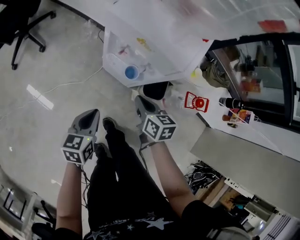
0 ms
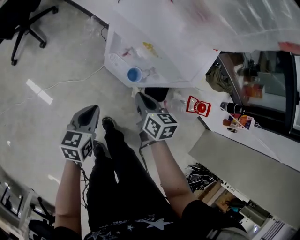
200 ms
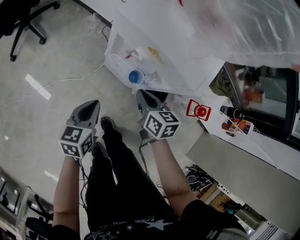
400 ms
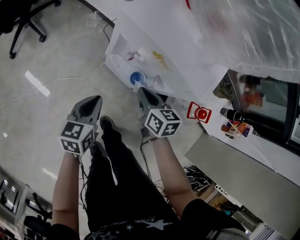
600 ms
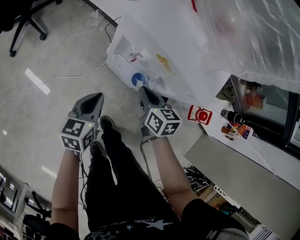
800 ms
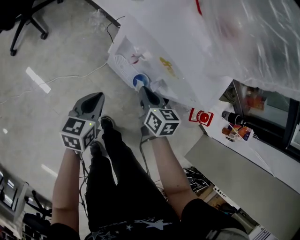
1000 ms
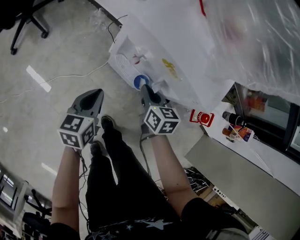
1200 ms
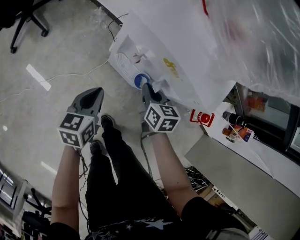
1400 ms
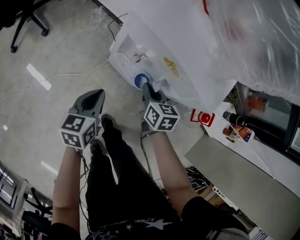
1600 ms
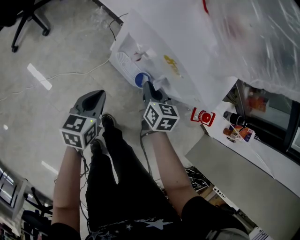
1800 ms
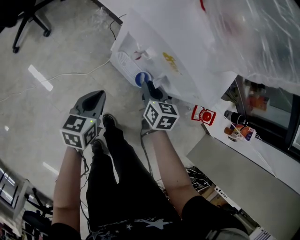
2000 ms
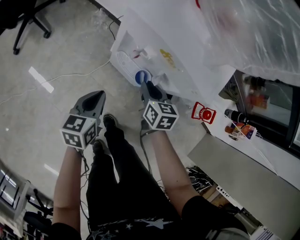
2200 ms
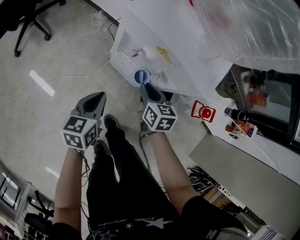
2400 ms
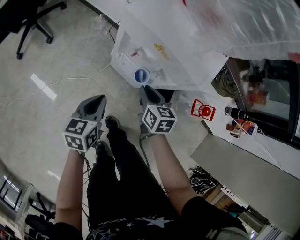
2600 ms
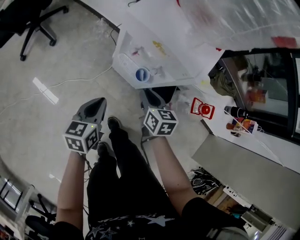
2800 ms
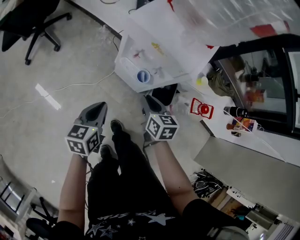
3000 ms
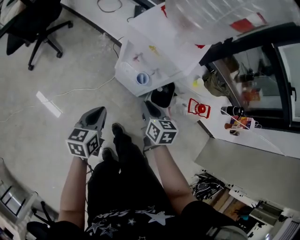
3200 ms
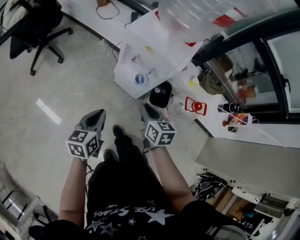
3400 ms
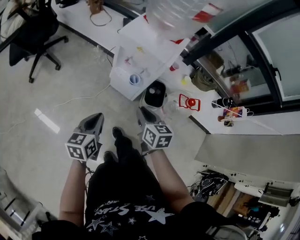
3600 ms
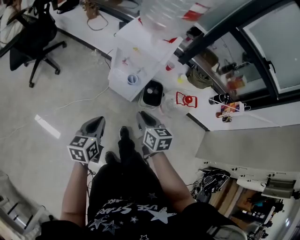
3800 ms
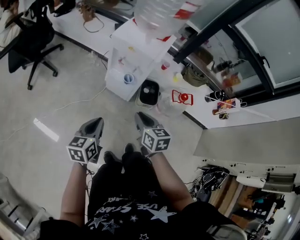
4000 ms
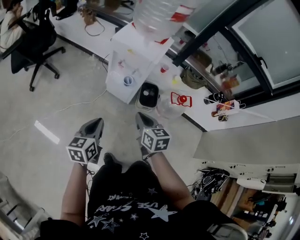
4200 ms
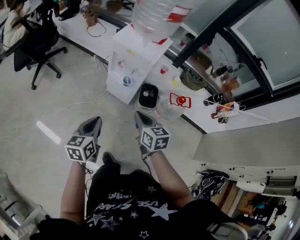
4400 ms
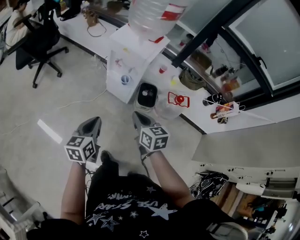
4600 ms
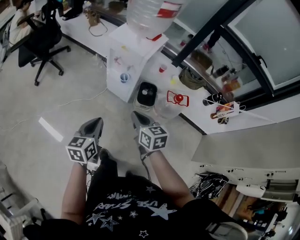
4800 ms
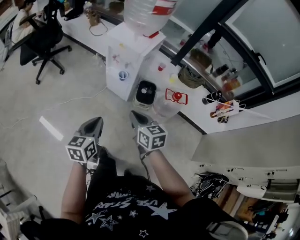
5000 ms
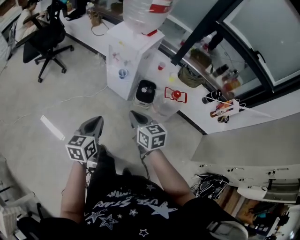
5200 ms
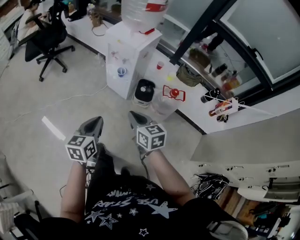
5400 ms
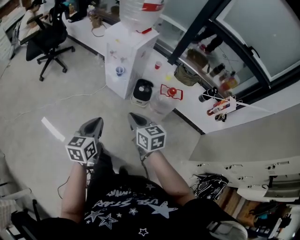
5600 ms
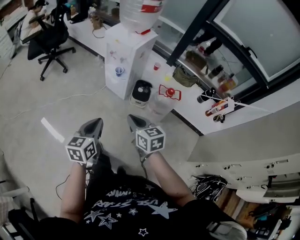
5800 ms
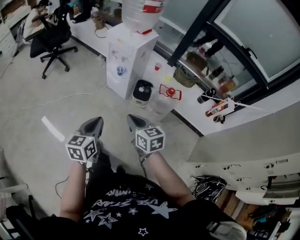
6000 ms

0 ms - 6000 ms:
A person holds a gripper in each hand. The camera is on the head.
0 ms - 1600 ms: Both grippers move forward and downward, about 15 cm.
1600 ms - 3000 ms: Both grippers move backward and upward, some 15 cm.
3000 ms - 4400 ms: The two grippers go roughly 25 cm backward and upward.
4400 ms - 6000 ms: The two grippers go roughly 25 cm backward and to the right.

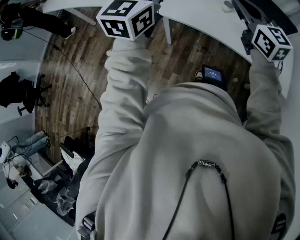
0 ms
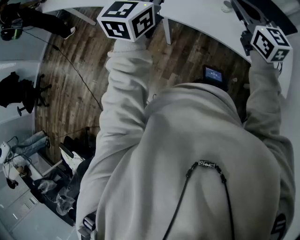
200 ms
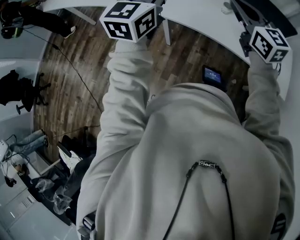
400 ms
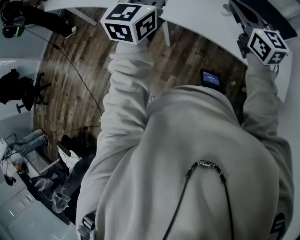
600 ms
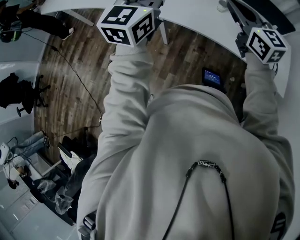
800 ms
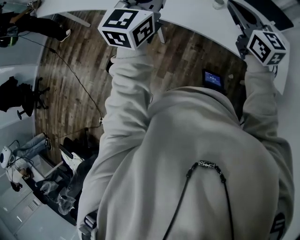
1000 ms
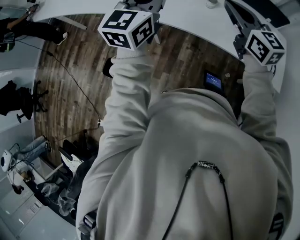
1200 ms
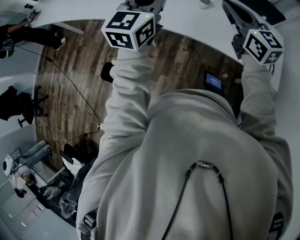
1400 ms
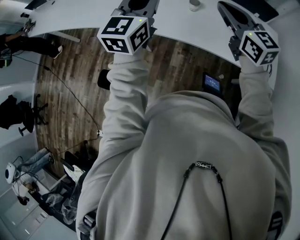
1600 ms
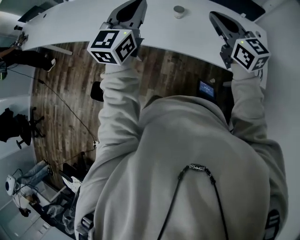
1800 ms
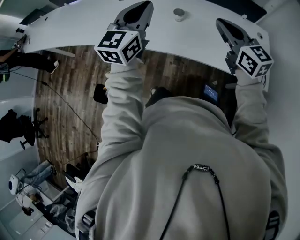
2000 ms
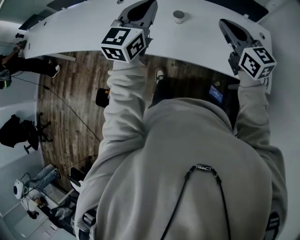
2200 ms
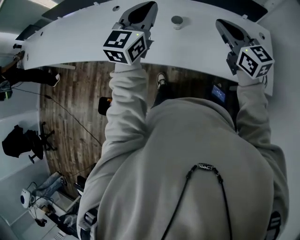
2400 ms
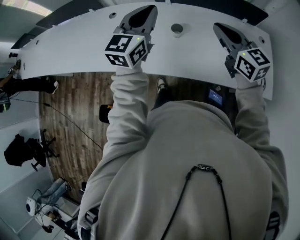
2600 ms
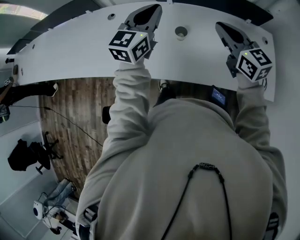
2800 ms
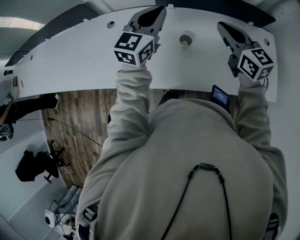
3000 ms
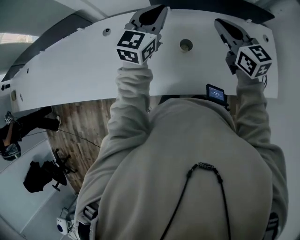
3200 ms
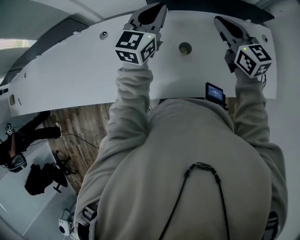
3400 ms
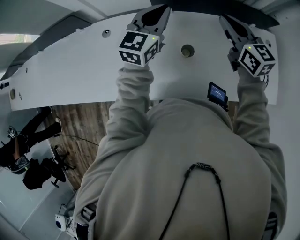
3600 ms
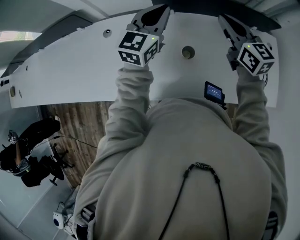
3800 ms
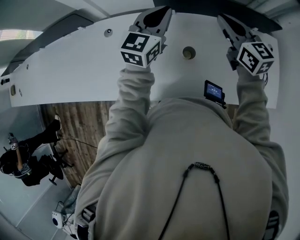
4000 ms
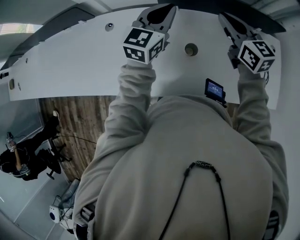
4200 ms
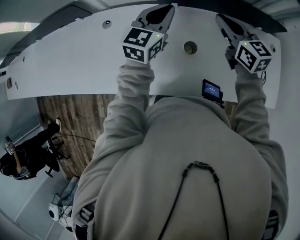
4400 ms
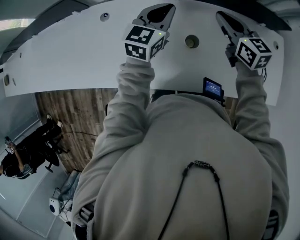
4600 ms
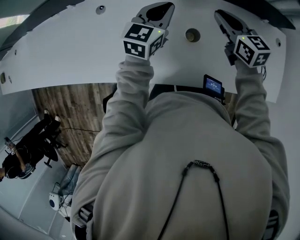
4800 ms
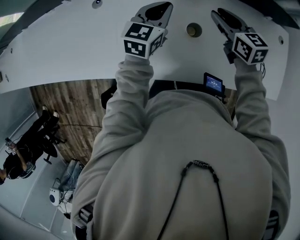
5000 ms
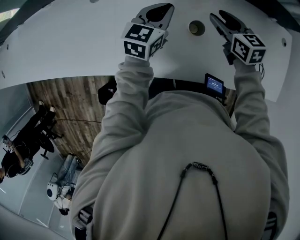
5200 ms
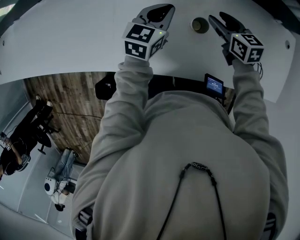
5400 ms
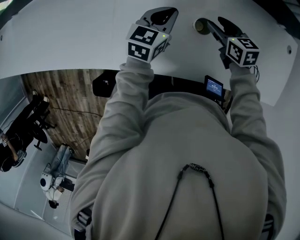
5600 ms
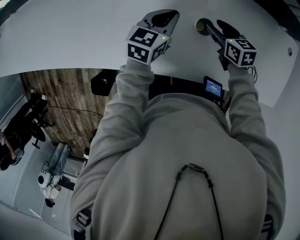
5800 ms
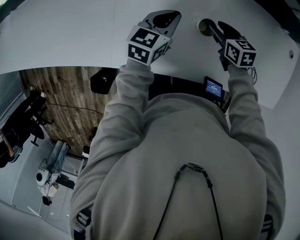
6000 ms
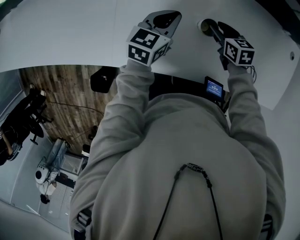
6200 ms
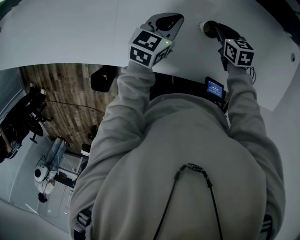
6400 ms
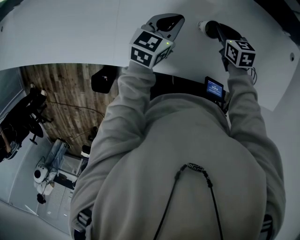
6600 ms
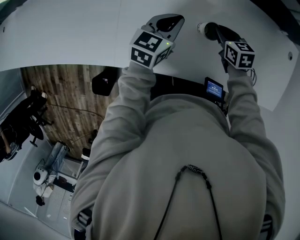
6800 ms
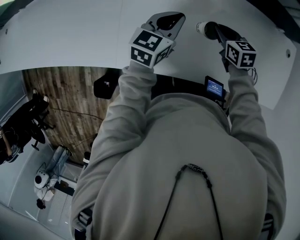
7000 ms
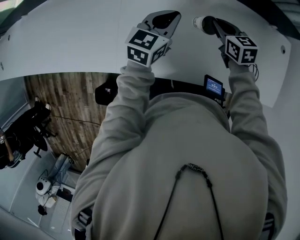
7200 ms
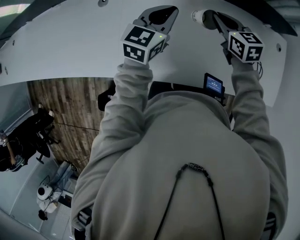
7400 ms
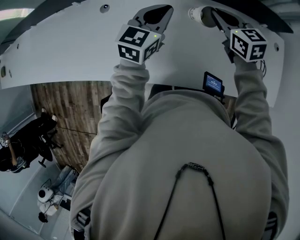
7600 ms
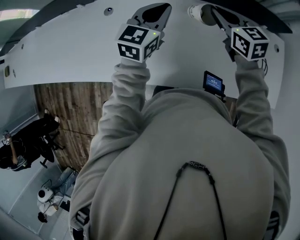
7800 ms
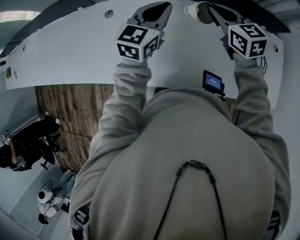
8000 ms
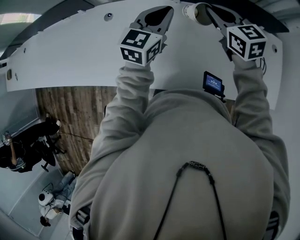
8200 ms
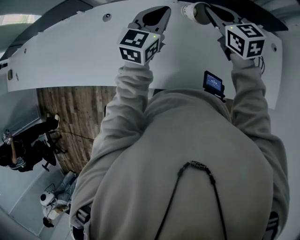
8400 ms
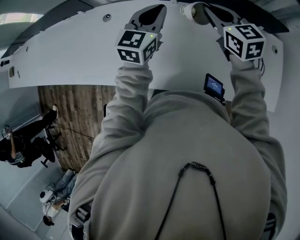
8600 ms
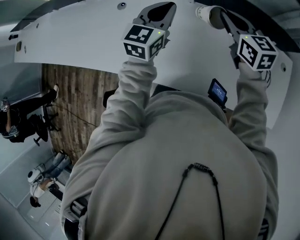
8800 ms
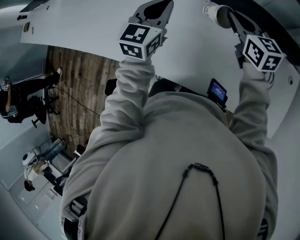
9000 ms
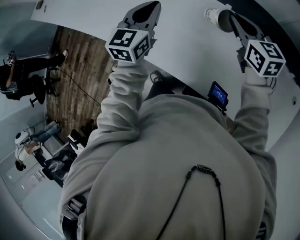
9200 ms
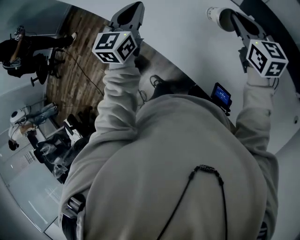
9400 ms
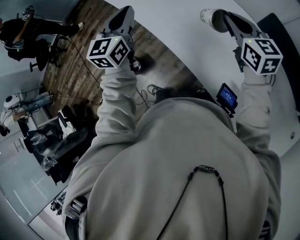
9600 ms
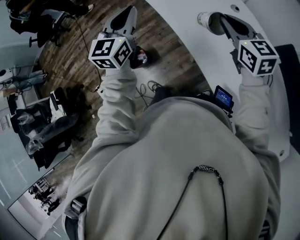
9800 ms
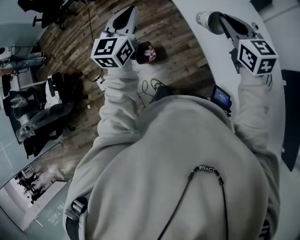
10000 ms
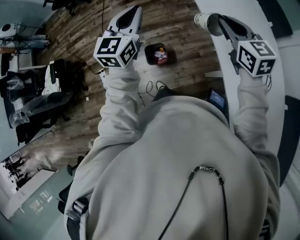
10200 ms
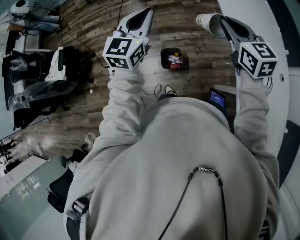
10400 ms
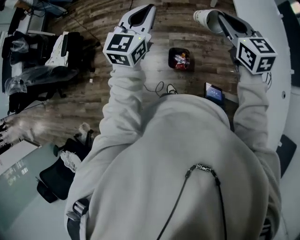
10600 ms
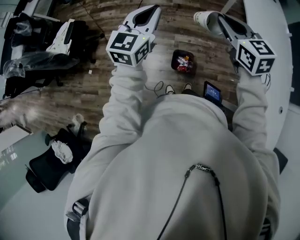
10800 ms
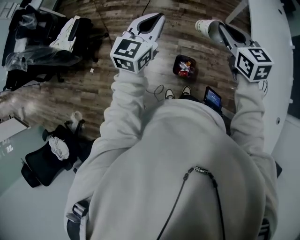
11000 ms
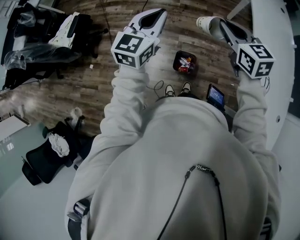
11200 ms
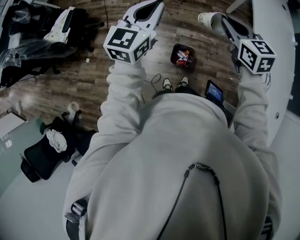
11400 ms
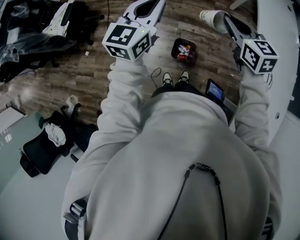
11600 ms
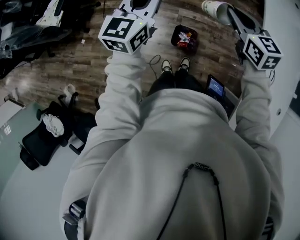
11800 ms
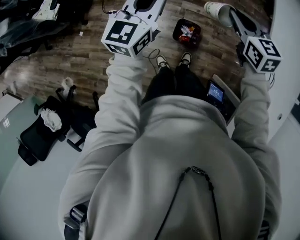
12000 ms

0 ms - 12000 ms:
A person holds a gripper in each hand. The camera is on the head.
0 ms - 1600 ms: Both grippers travel together to the right, about 15 cm.
1600 ms - 3000 ms: The right gripper shifts approximately 15 cm to the right, downward and forward. The left gripper travels forward, to the right and downward by some 20 cm, and changes its angle by about 20 degrees.
3000 ms - 4400 ms: The right gripper travels forward by approximately 5 cm, while the left gripper ends up about 5 cm from where it was.
4400 ms - 6000 ms: The two grippers go some 20 cm downward. The left gripper swivels roughly 20 degrees. Meanwhile the right gripper points its fingers roughly 30 degrees further downward, and opens up.
6000 ms - 7600 ms: Both grippers move upward, approximately 15 cm. The right gripper rotates some 20 degrees, and closes its fingers.
7600 ms - 9000 ms: The left gripper travels to the left by approximately 5 cm, and rotates about 20 degrees.
9000 ms - 10400 ms: Both grippers are carried some 80 cm. The right gripper changes its angle by some 70 degrees. Meanwhile the left gripper changes its angle by some 70 degrees.
10400 ms - 12000 ms: The left gripper moves to the left, downward and forward, some 20 cm. The right gripper moves downward, forward and to the left, approximately 25 cm, and turns by approximately 20 degrees.

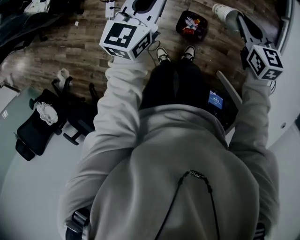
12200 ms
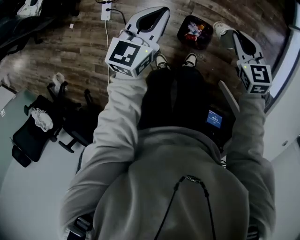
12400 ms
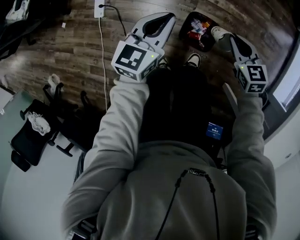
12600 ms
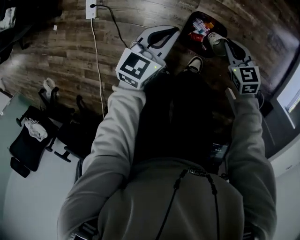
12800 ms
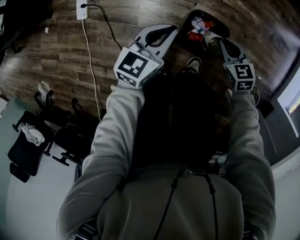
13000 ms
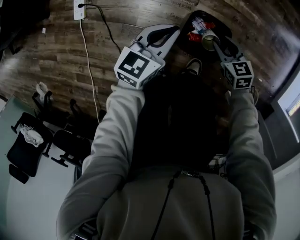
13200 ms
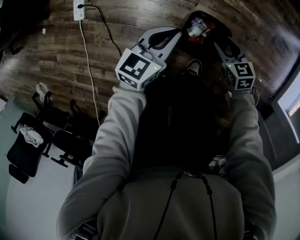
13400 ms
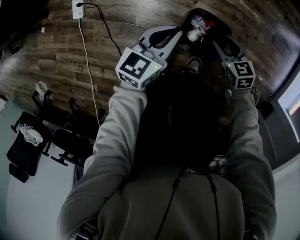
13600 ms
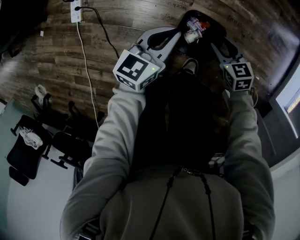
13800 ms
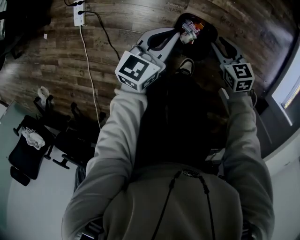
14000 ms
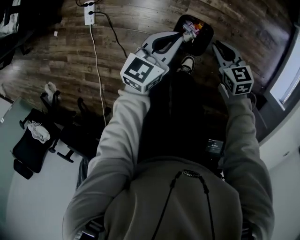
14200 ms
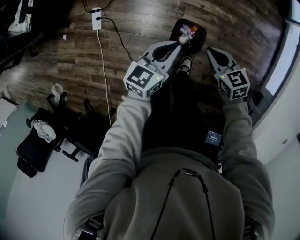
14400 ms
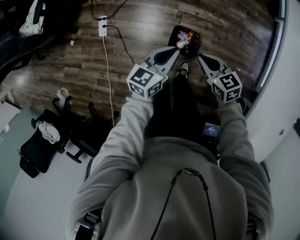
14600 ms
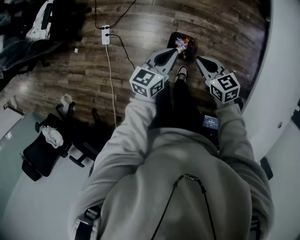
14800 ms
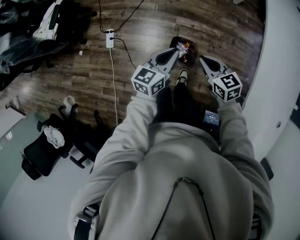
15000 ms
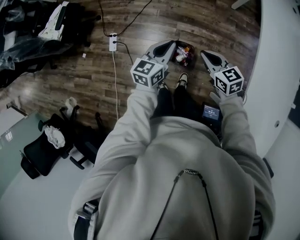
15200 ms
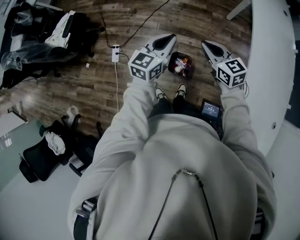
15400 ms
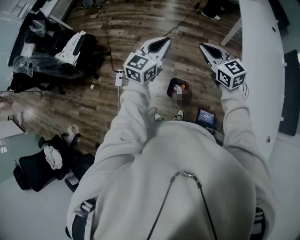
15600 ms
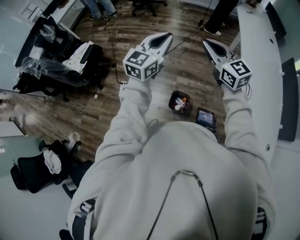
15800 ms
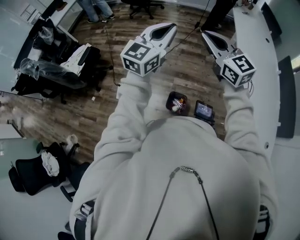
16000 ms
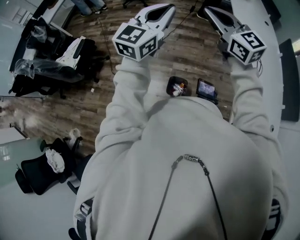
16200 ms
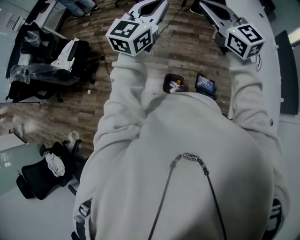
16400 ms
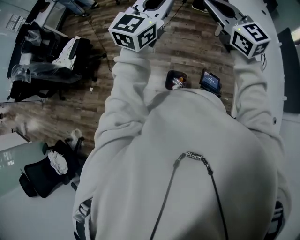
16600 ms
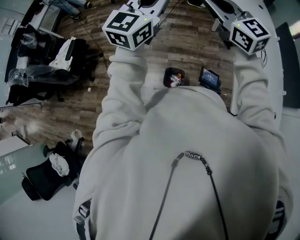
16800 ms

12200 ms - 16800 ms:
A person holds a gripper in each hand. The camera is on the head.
12200 ms - 13800 ms: The two grippers go approximately 50 cm downward. The right gripper turns by roughly 20 degrees, and opens up; the left gripper changes its angle by some 20 degrees.
13800 ms - 15200 ms: Both grippers travel together upward, about 50 cm. The right gripper closes.
15200 ms - 16800 ms: The two grippers go some 40 cm upward. The left gripper rotates approximately 40 degrees, while the right gripper angles its fingers upward, by about 30 degrees.

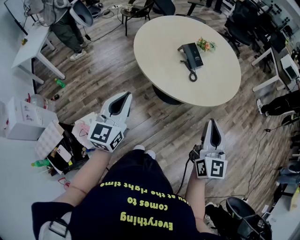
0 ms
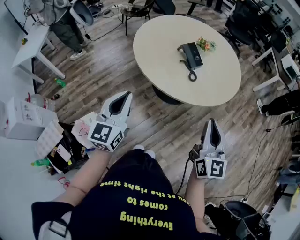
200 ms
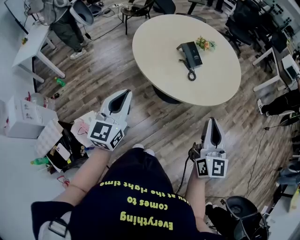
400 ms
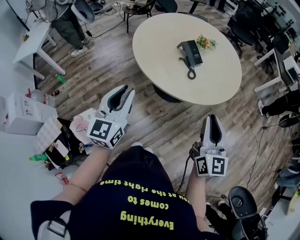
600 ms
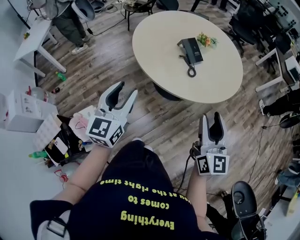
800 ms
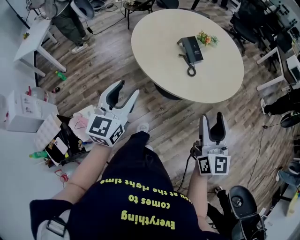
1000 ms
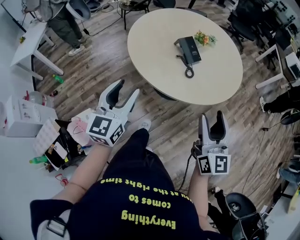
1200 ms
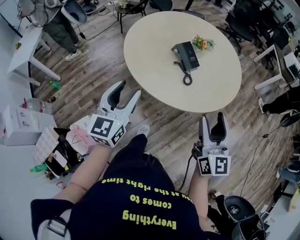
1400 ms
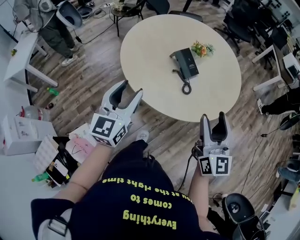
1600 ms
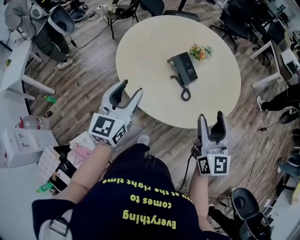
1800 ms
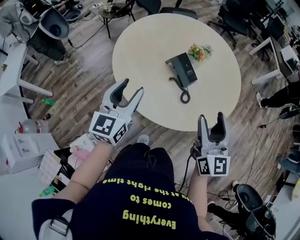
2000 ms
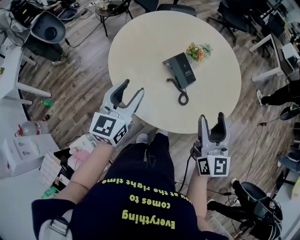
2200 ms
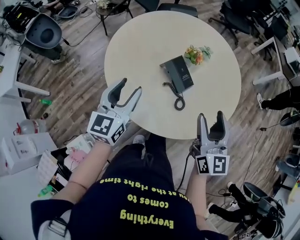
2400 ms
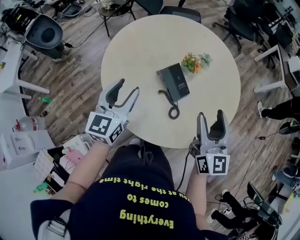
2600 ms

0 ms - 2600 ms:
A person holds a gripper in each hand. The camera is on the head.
0 ms - 1200 ms: The right gripper travels forward by some 5 cm, and opens its fingers, while the left gripper moves to the right and forward, some 5 cm, and opens up.
1200 ms - 2600 ms: The two grippers go about 30 cm forward.
